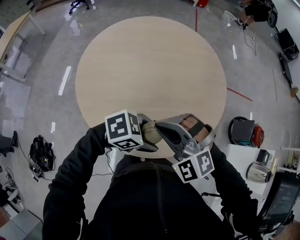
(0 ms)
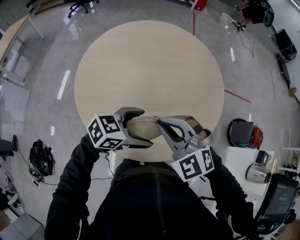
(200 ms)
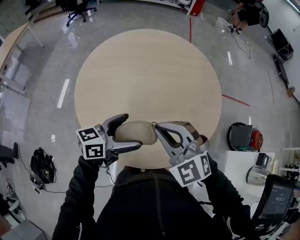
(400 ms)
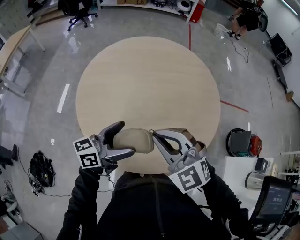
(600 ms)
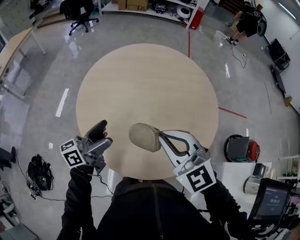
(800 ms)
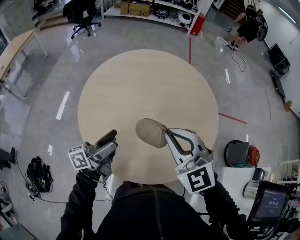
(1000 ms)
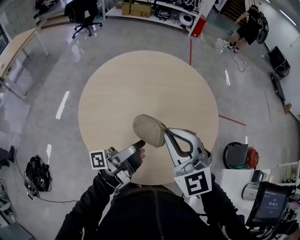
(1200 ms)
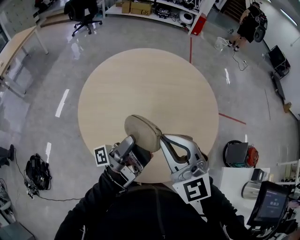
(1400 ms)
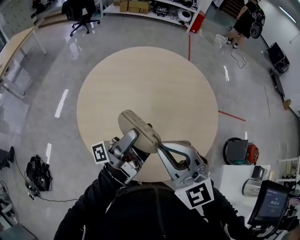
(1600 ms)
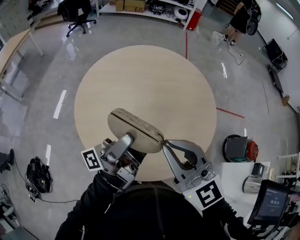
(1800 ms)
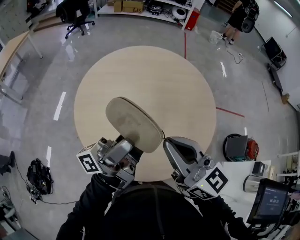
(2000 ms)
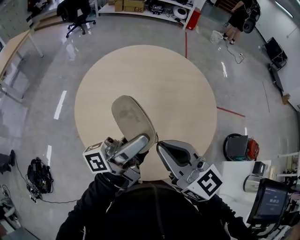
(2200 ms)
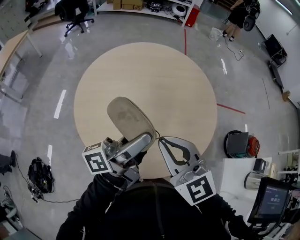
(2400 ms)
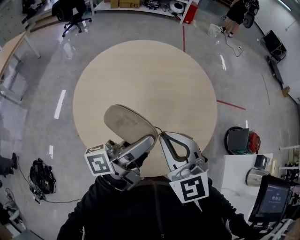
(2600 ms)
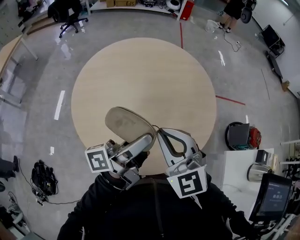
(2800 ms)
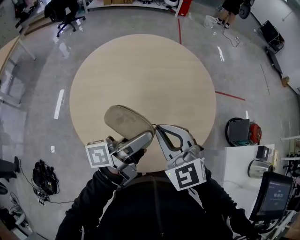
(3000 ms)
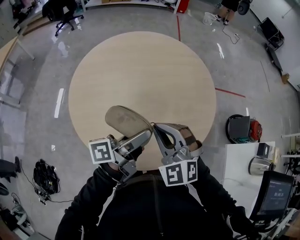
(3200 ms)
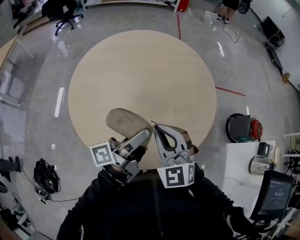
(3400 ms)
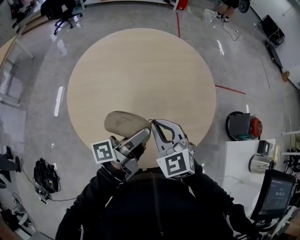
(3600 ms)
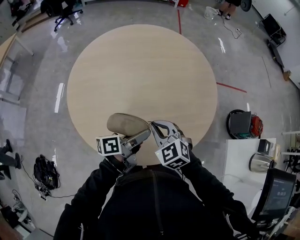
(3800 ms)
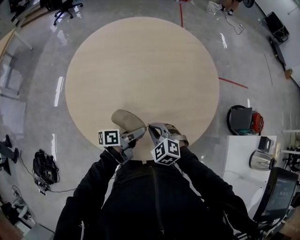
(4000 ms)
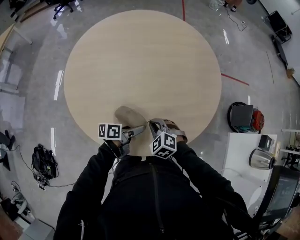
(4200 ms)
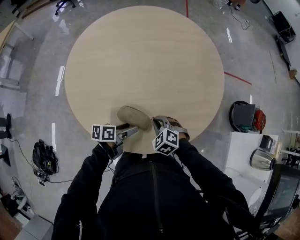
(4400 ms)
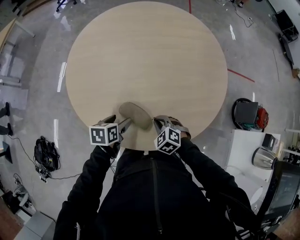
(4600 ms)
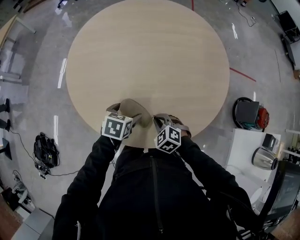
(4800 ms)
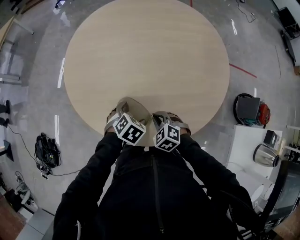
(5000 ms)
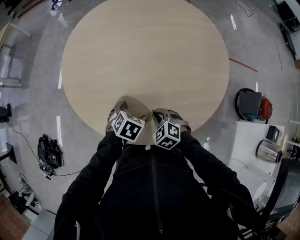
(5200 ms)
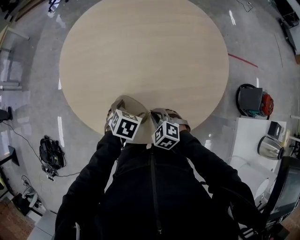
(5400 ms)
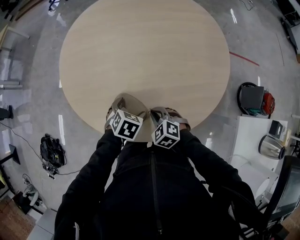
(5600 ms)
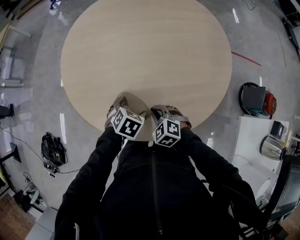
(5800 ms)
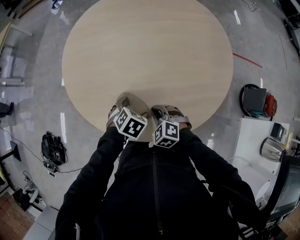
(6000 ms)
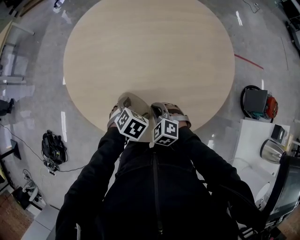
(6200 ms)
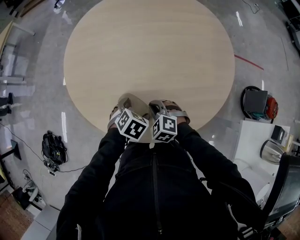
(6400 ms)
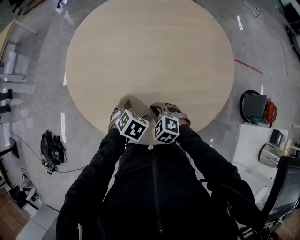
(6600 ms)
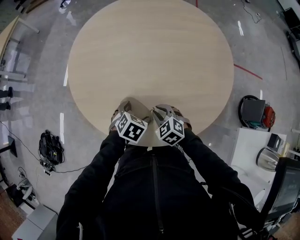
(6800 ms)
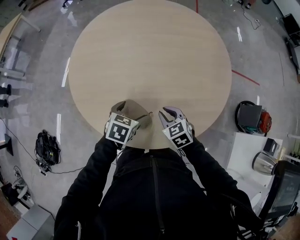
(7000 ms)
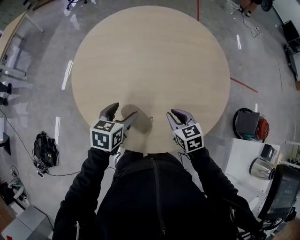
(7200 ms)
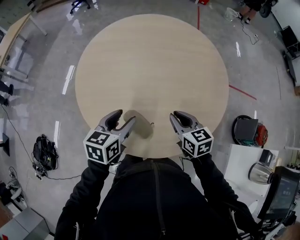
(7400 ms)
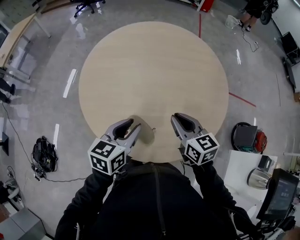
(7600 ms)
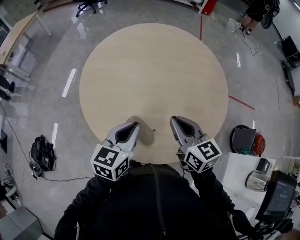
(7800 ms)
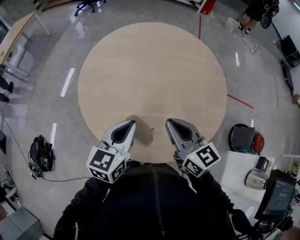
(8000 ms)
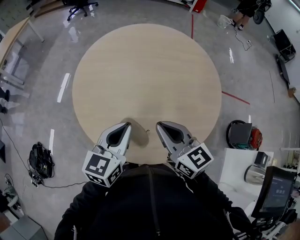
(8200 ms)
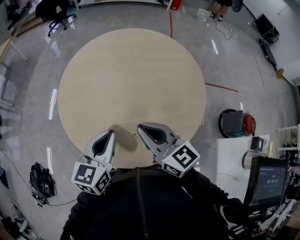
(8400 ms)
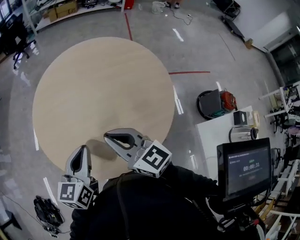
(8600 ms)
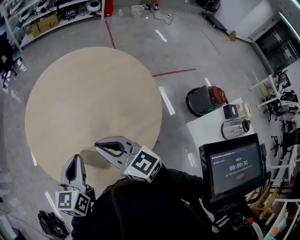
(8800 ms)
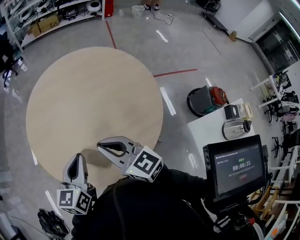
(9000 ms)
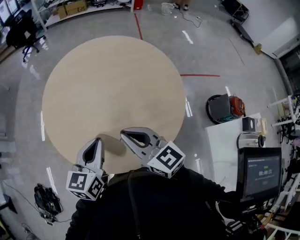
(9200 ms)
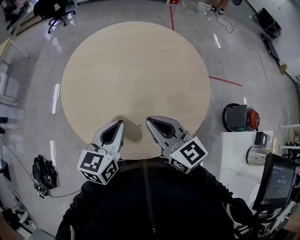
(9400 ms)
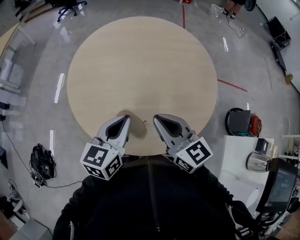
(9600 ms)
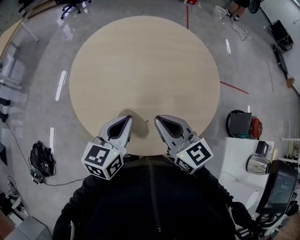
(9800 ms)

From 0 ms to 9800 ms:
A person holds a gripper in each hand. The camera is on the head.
From 0 ms to 1400 ms: The right gripper travels upward by approximately 10 cm, and rotates about 40 degrees; the left gripper shifts by roughly 20 cm, tips its fingers upward by about 70 degrees, and opens.
From 1400 ms to 2800 ms: The left gripper rotates approximately 30 degrees, and closes up.
From 2800 ms to 4200 ms: Both grippers travel together downward, some 30 cm. The right gripper tilts its fingers roughly 40 degrees downward; the left gripper tilts its fingers approximately 40 degrees downward.
From 4200 ms to 5600 ms: The left gripper moves some 10 cm to the left and comes back, and tilts its fingers some 50 degrees downward.
From 5600 ms to 7000 ms: The right gripper shifts some 5 cm forward, and rotates about 20 degrees.
From 7000 ms to 8400 ms: The grippers both shift upward by about 25 cm. The right gripper angles its fingers upward, by some 40 degrees. Meanwhile the left gripper tips its fingers upward by approximately 40 degrees, and closes.

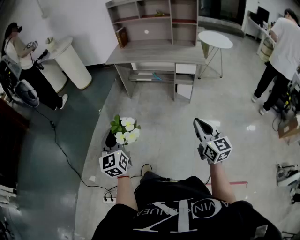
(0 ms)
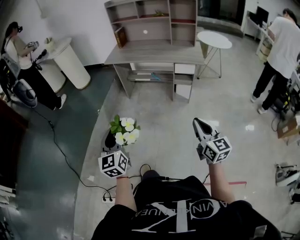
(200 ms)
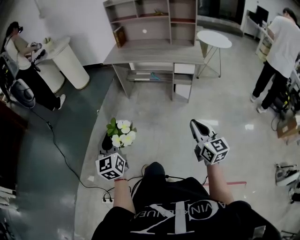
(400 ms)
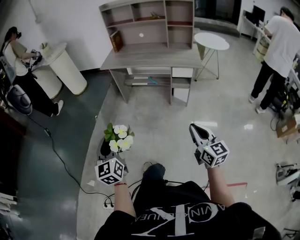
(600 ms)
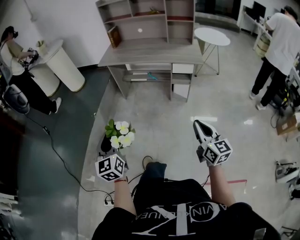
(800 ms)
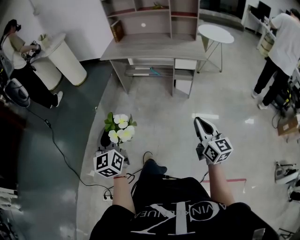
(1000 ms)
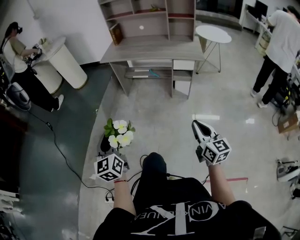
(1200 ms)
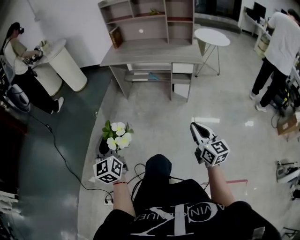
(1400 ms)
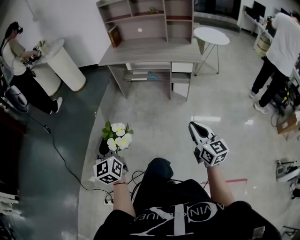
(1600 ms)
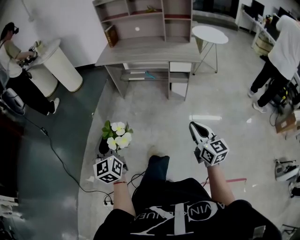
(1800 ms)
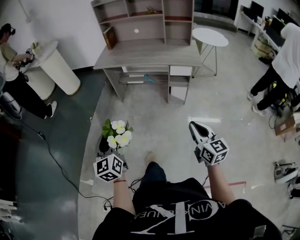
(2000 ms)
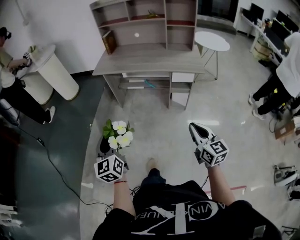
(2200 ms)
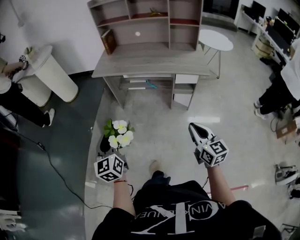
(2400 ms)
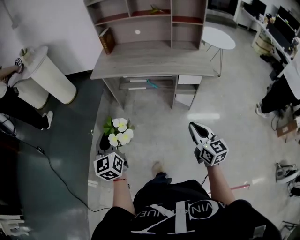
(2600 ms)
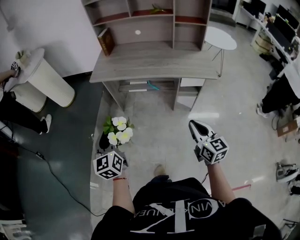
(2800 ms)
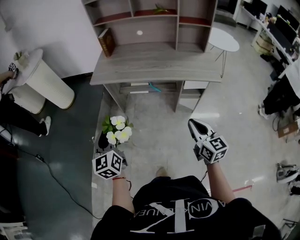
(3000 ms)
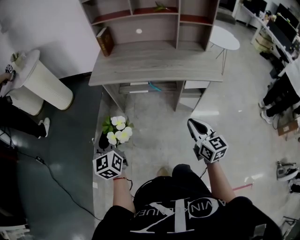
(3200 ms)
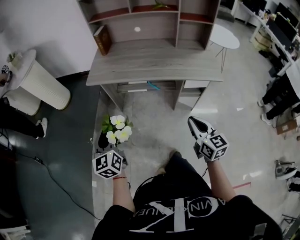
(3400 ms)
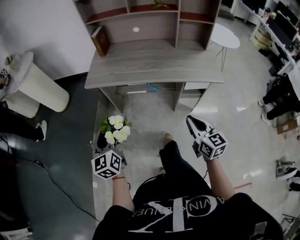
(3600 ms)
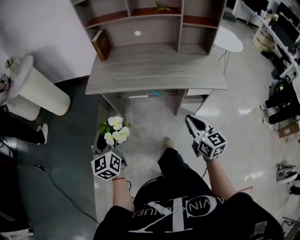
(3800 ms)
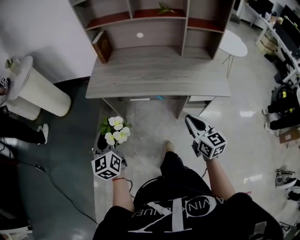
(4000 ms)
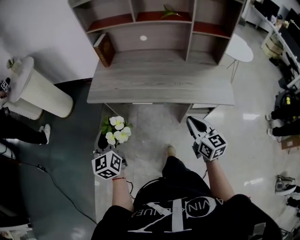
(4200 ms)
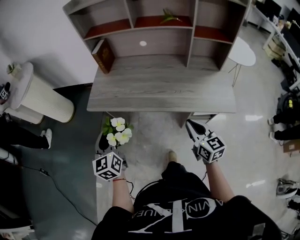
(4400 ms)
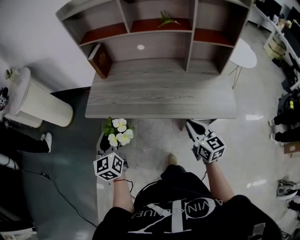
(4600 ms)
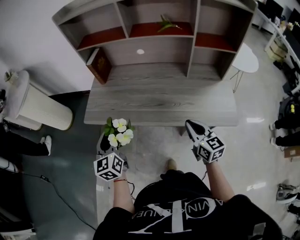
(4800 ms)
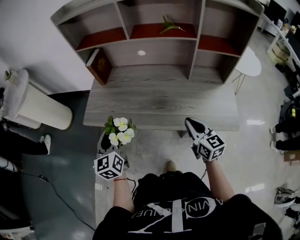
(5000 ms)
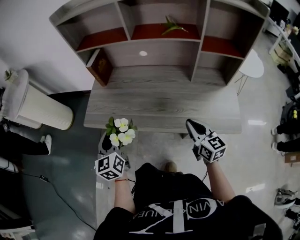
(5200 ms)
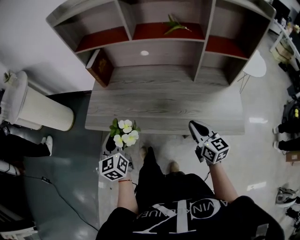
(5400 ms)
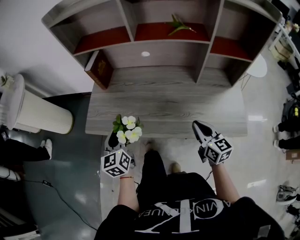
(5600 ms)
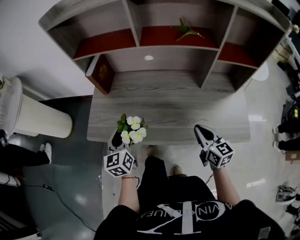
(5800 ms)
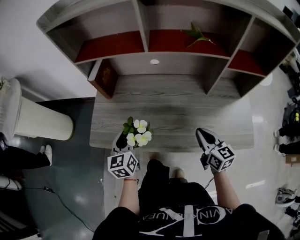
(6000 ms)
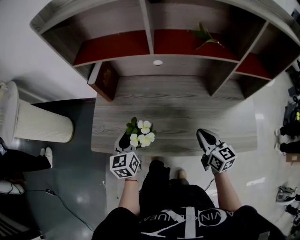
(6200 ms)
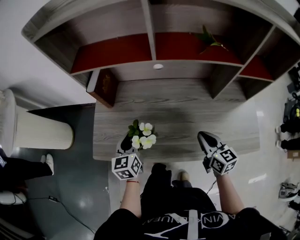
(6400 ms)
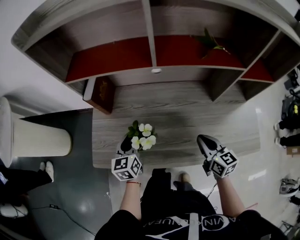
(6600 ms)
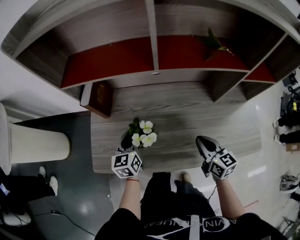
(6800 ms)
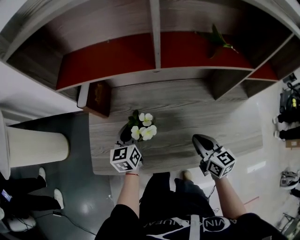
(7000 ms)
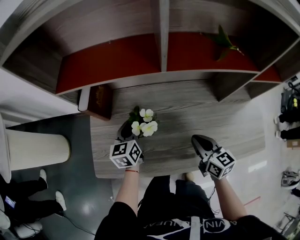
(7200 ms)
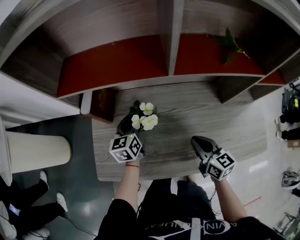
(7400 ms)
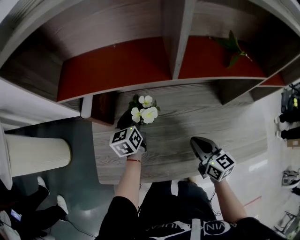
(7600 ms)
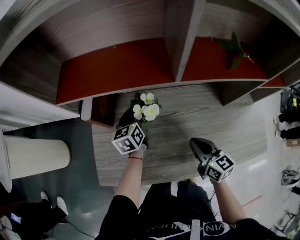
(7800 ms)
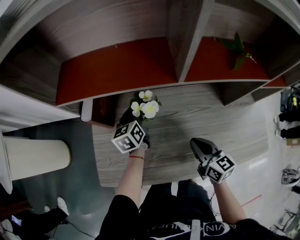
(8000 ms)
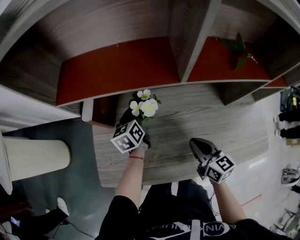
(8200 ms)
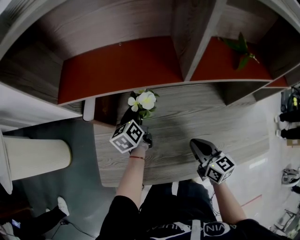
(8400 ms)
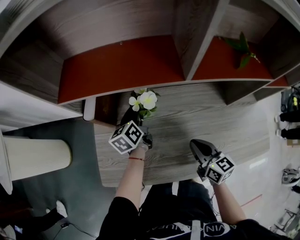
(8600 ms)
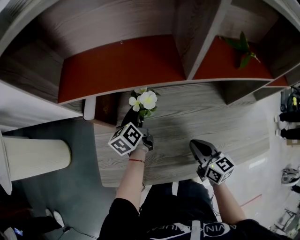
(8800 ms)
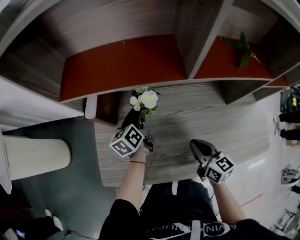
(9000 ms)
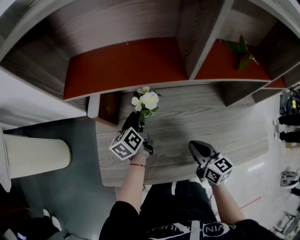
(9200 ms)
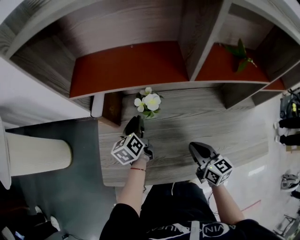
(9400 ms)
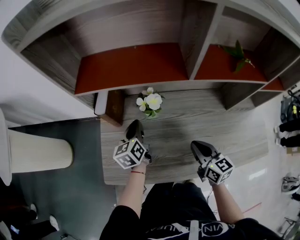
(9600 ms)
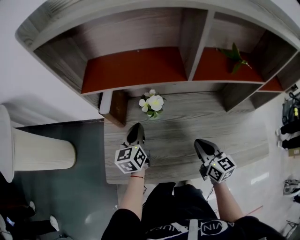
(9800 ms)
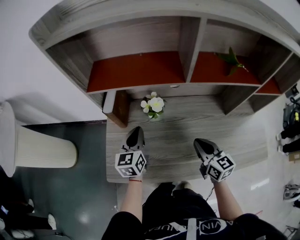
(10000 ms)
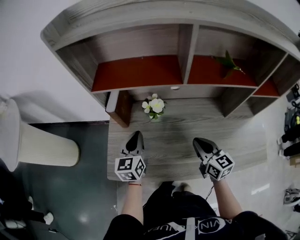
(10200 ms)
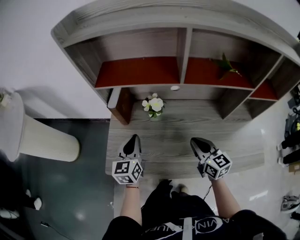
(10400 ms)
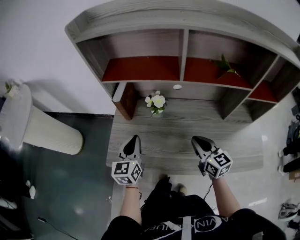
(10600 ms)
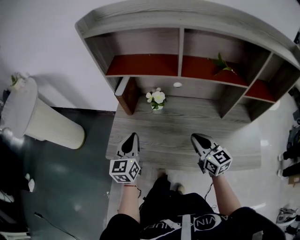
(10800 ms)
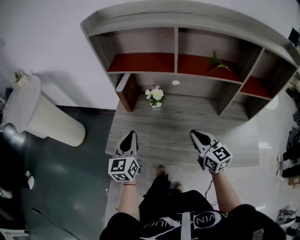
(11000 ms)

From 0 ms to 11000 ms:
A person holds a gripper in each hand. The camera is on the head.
From 1600 ms to 3200 ms: The grippers both shift forward by roughly 40 cm.
From 3200 ms to 4800 ms: The right gripper moves forward, approximately 30 cm; the left gripper travels forward and to the right by roughly 30 cm.
From 4800 ms to 6200 ms: The right gripper is displaced forward by roughly 15 cm. The left gripper is displaced forward and downward by approximately 20 cm.
From 6200 ms to 7800 ms: The left gripper is displaced forward by roughly 25 cm. Meanwhile the right gripper is displaced forward and to the left by about 15 cm.
From 7800 ms to 9400 ms: The left gripper changes place by roughly 5 cm.
From 9400 ms to 11000 ms: The right gripper moves upward and backward, some 15 cm, and swivels some 20 degrees. Meanwhile the left gripper heads backward and upward, covering some 25 cm, turns by roughly 30 degrees, and closes its fingers.

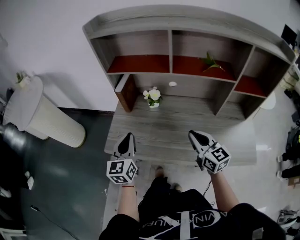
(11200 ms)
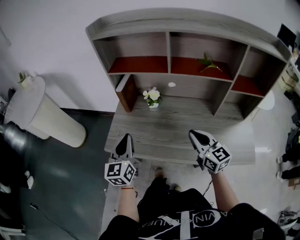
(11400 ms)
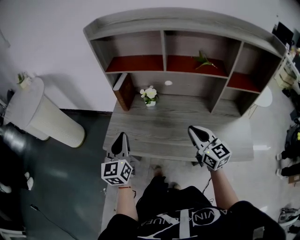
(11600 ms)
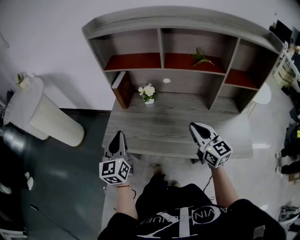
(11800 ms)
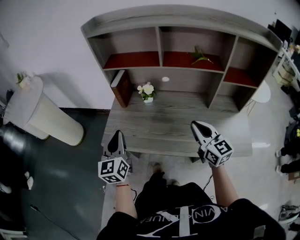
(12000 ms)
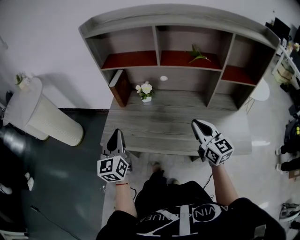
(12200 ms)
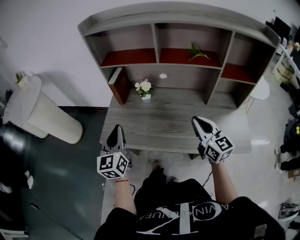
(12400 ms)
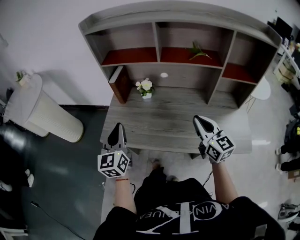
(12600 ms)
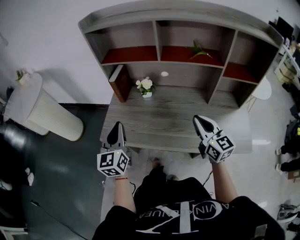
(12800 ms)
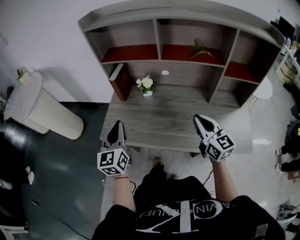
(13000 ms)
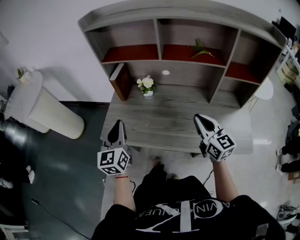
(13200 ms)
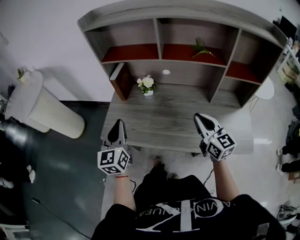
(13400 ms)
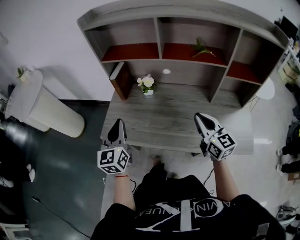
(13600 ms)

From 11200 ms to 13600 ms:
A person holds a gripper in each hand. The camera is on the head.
From 11200 ms to 12400 ms: The right gripper changes place by roughly 10 cm. Meanwhile the left gripper changes place by approximately 5 cm.
From 12400 ms to 13600 ms: There are only small adjustments of the grippers.
